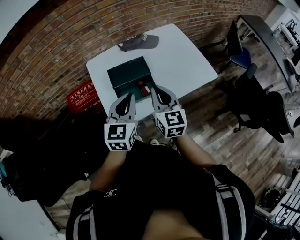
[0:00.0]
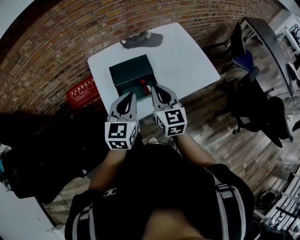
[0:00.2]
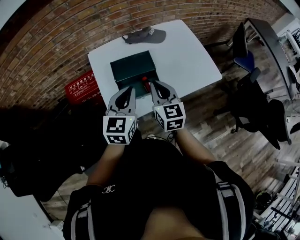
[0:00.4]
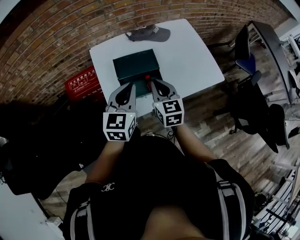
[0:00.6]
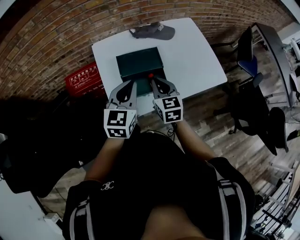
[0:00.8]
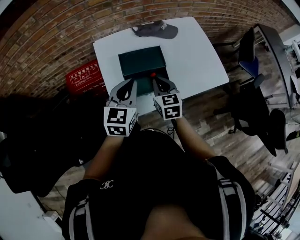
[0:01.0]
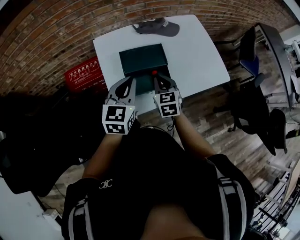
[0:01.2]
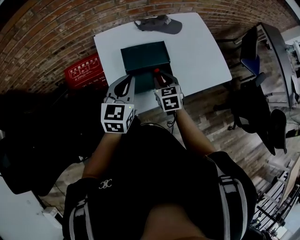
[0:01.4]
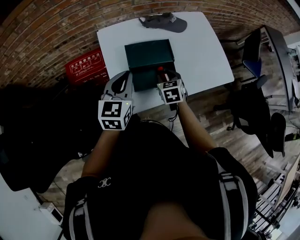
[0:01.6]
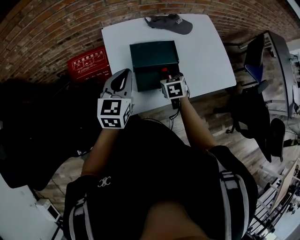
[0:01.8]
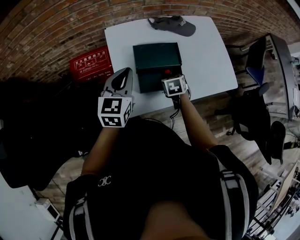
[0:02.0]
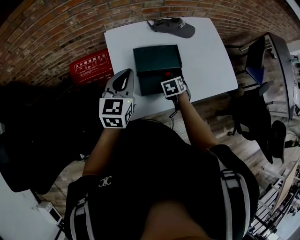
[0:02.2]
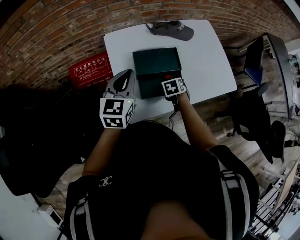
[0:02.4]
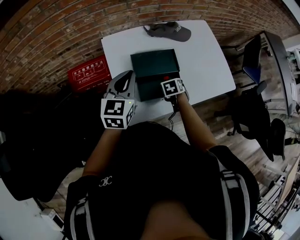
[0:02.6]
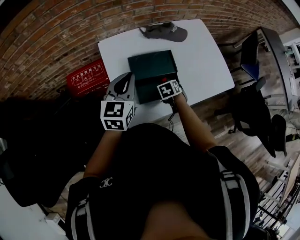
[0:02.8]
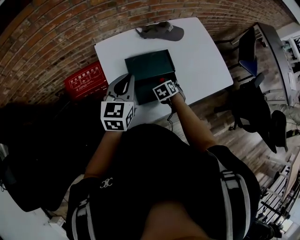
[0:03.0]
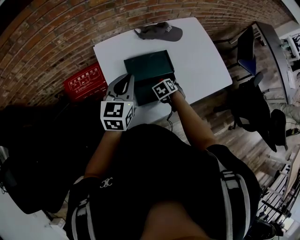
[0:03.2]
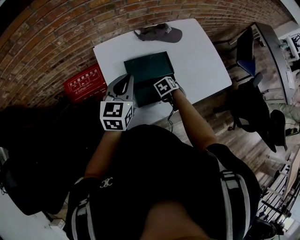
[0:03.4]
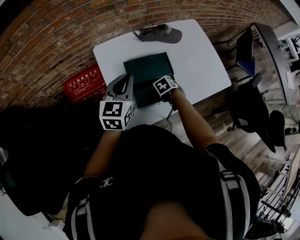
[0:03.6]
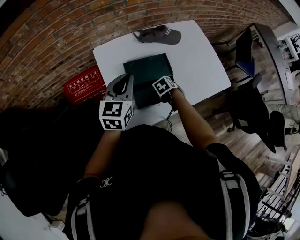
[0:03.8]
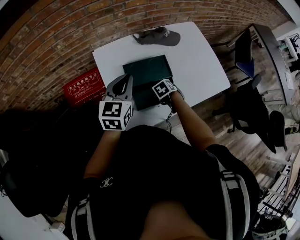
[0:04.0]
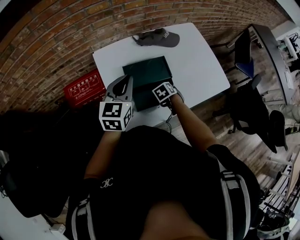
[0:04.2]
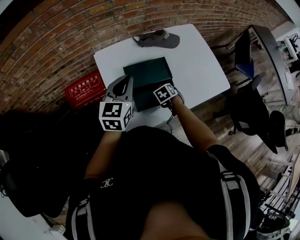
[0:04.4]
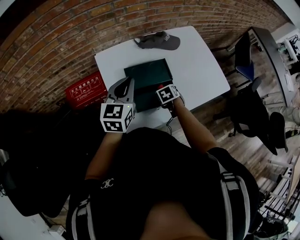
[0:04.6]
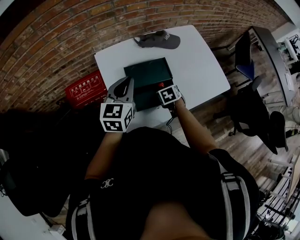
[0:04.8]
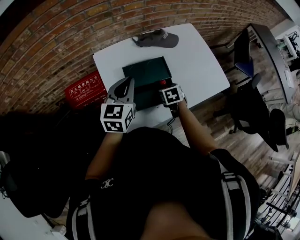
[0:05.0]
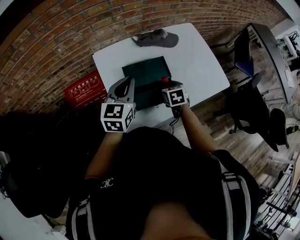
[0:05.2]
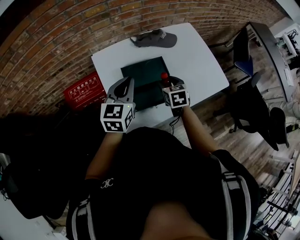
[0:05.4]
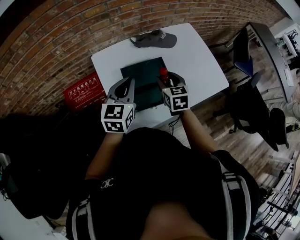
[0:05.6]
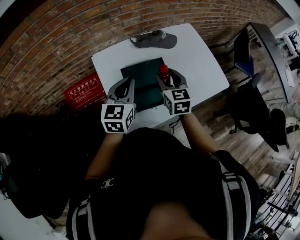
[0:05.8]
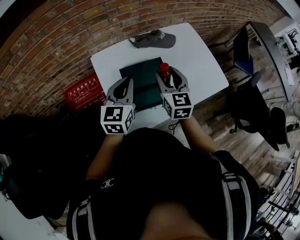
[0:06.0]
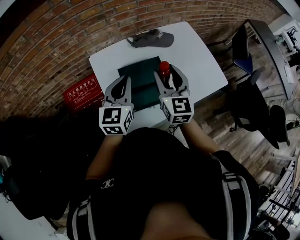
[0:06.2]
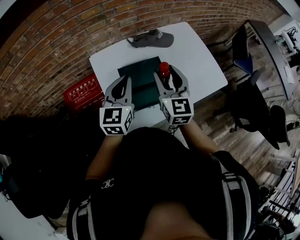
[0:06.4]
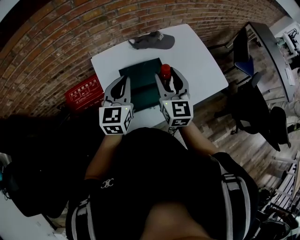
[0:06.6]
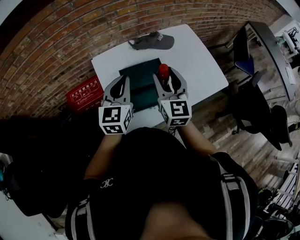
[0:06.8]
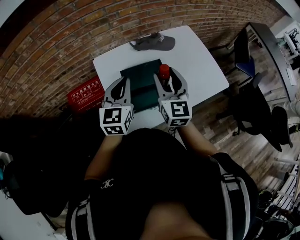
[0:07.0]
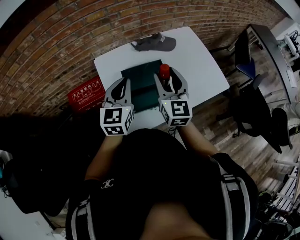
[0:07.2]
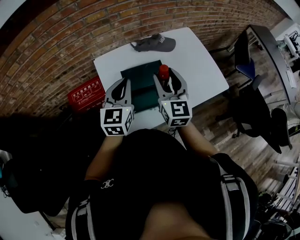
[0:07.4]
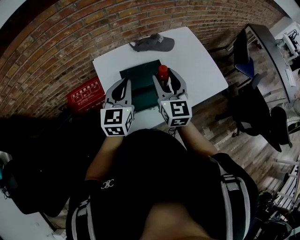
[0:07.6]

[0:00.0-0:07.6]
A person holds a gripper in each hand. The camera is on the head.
0:00.0 to 0:01.6: The left gripper heads to the left, forward and downward, covering roughly 15 cm; the right gripper heads downward and forward, covering some 20 cm, tilts its fingers approximately 40 degrees downward, and opens up.
0:01.6 to 0:03.0: The left gripper shifts approximately 5 cm forward. Meanwhile the right gripper shifts approximately 10 cm downward, and rotates about 30 degrees.
0:03.0 to 0:04.6: There are only small adjustments of the grippers.
0:04.6 to 0:06.0: The right gripper heads upward, covering about 25 cm, and tips its fingers upward by approximately 50 degrees.
0:06.0 to 0:07.6: The right gripper shifts by approximately 5 cm.

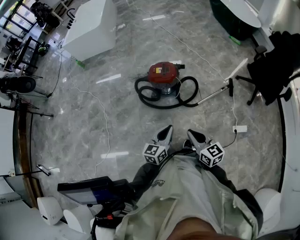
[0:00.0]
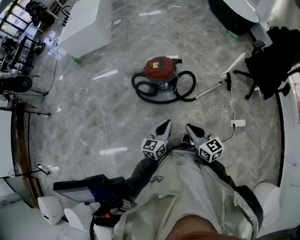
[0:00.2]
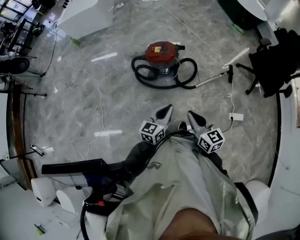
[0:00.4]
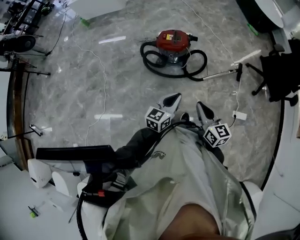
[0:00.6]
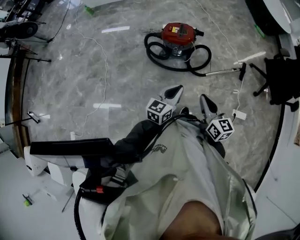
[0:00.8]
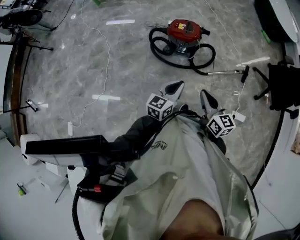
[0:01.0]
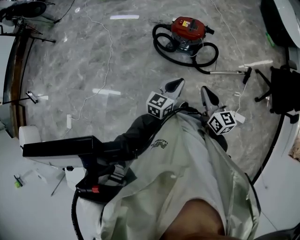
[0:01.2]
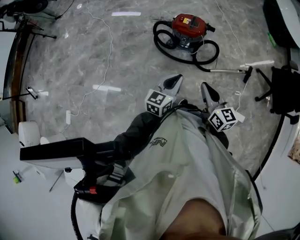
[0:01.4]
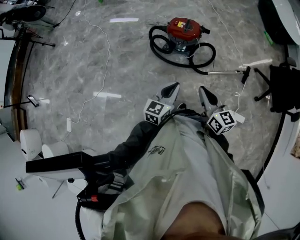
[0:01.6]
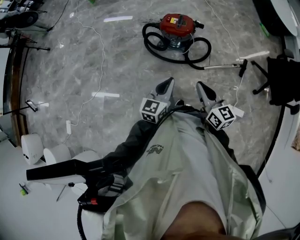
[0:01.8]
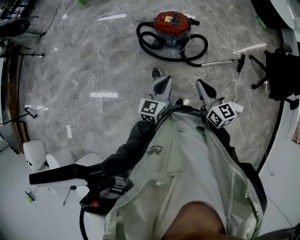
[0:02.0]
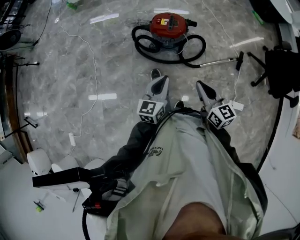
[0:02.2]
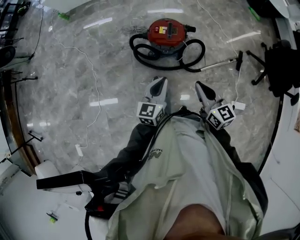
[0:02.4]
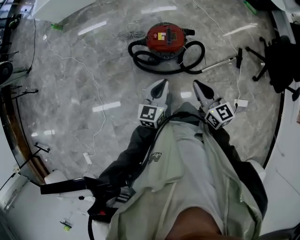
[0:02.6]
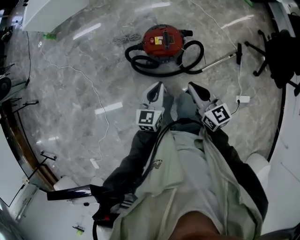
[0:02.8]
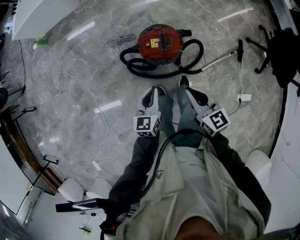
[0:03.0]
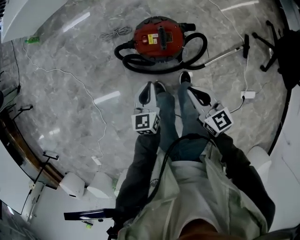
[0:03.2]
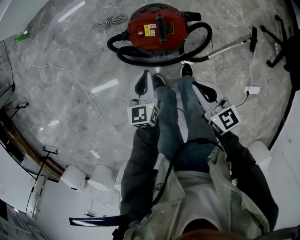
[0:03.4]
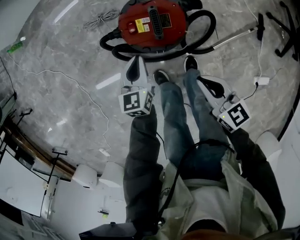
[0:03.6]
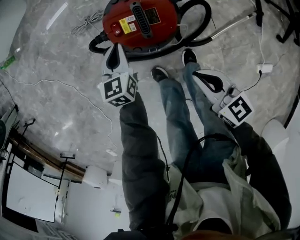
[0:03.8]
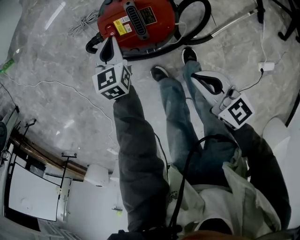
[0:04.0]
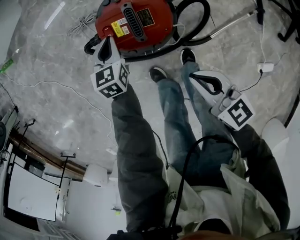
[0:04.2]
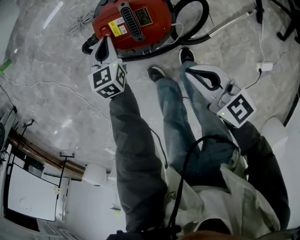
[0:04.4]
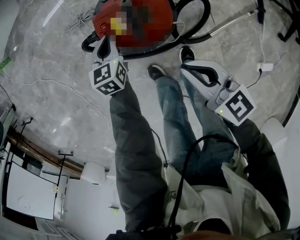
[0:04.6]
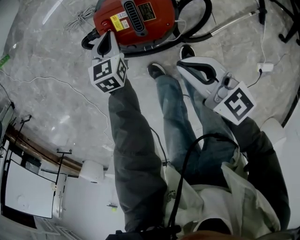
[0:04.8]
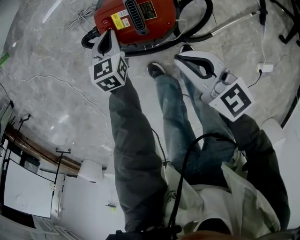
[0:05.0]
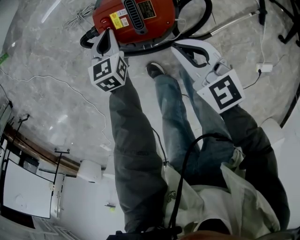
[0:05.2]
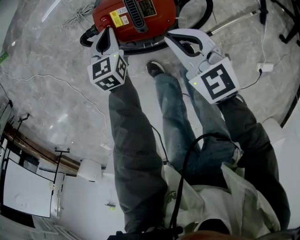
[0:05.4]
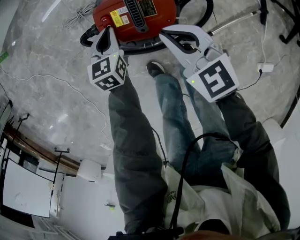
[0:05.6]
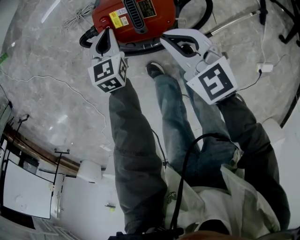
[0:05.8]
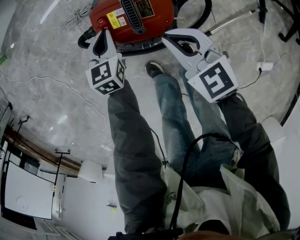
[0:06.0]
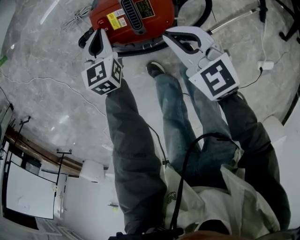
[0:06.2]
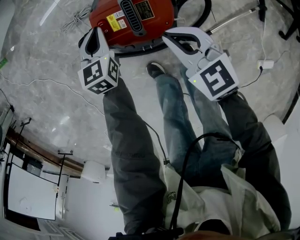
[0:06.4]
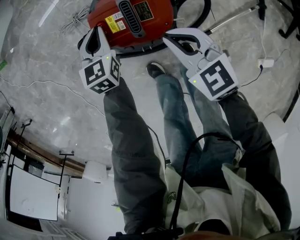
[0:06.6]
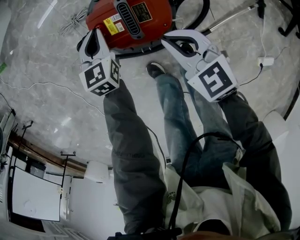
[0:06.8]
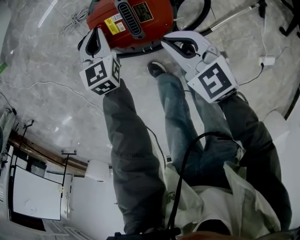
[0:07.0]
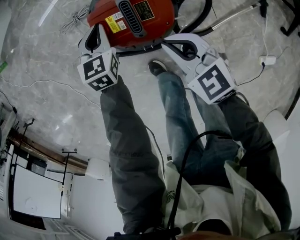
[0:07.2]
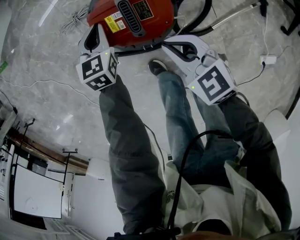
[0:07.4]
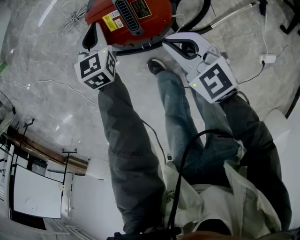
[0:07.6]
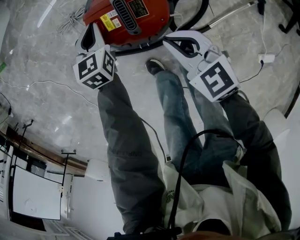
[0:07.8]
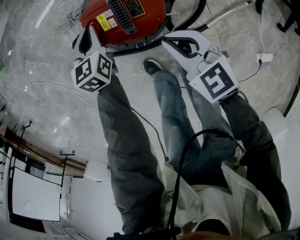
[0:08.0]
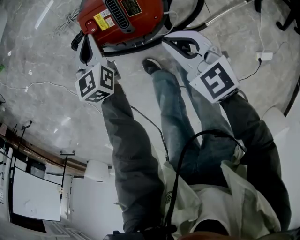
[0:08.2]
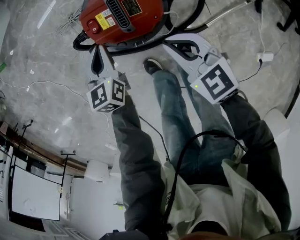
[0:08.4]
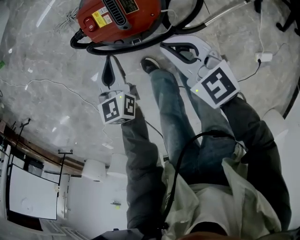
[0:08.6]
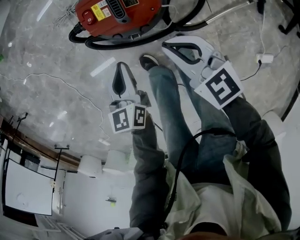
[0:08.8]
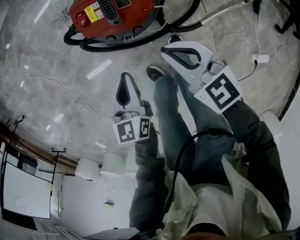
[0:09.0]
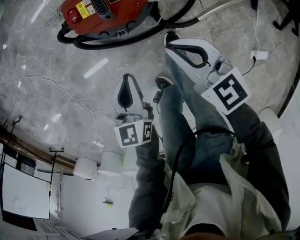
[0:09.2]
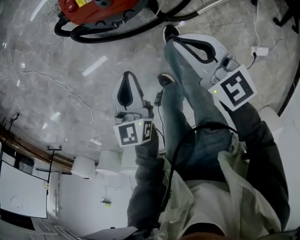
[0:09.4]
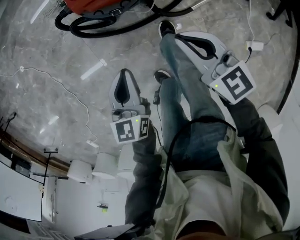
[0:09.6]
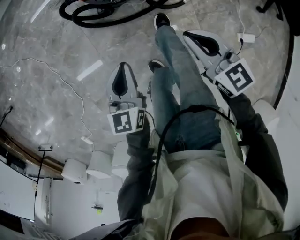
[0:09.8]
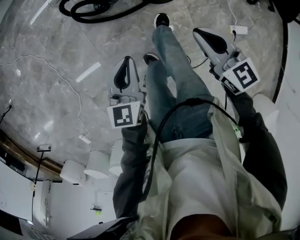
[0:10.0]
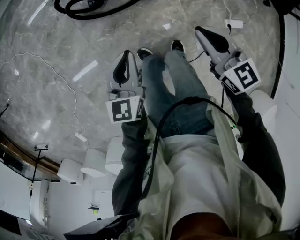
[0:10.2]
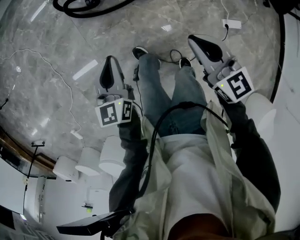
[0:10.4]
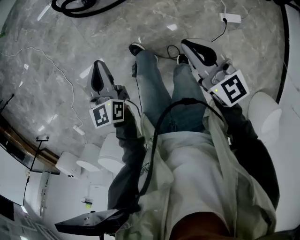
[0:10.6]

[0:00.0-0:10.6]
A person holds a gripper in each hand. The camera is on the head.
0:00.0 to 0:01.6: The right gripper ends up about 5 cm from where it was.
0:01.6 to 0:03.0: The grippers both shift forward by some 35 cm.
0:03.0 to 0:04.6: The right gripper travels downward by approximately 25 cm; the left gripper goes about 40 cm downward and forward, and changes its angle by approximately 20 degrees.
0:04.6 to 0:06.0: The right gripper shifts approximately 5 cm forward, and turns by about 20 degrees.
0:06.0 to 0:07.6: The grippers make only small movements.
0:07.6 to 0:09.0: The right gripper heads backward, covering about 5 cm. Meanwhile the left gripper shifts some 25 cm backward, and turns by some 30 degrees.
0:09.0 to 0:10.6: The grippers both shift backward and upward by some 50 cm.

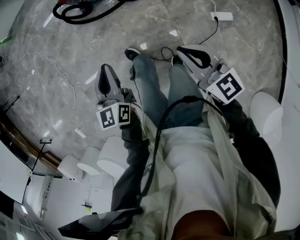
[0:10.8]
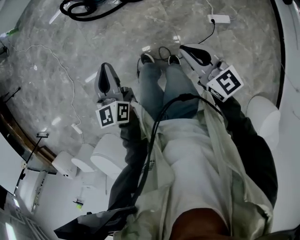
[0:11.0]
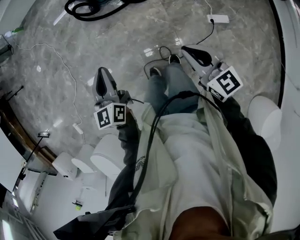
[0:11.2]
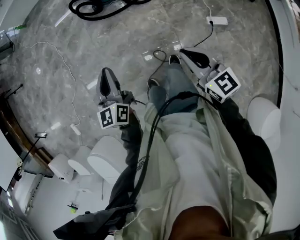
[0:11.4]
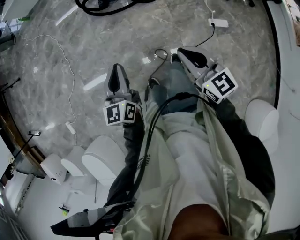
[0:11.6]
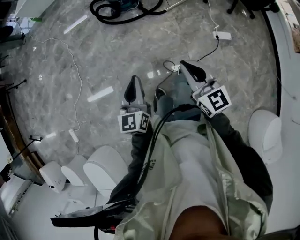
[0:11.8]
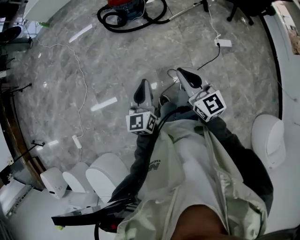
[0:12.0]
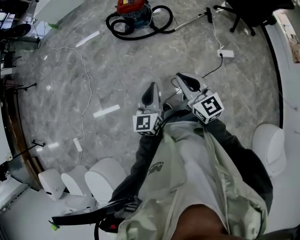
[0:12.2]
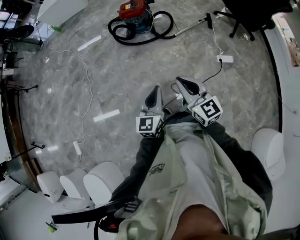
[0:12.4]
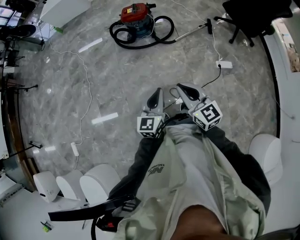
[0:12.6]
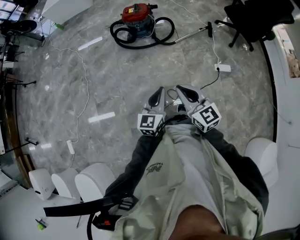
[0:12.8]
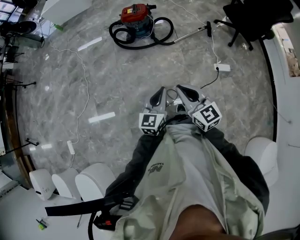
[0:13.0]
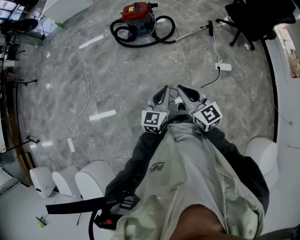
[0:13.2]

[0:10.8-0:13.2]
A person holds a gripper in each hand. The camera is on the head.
0:10.8 to 0:12.0: The left gripper shifts some 30 cm backward, upward and to the left. The right gripper moves to the left, backward and upward, approximately 30 cm.
0:12.0 to 0:13.2: The left gripper travels to the right by about 10 cm.

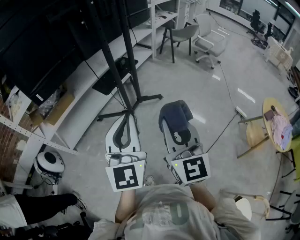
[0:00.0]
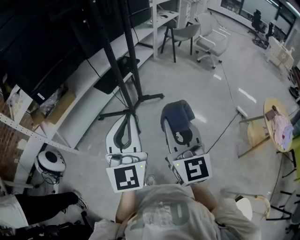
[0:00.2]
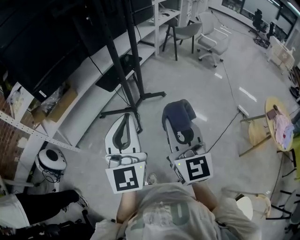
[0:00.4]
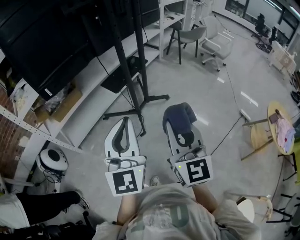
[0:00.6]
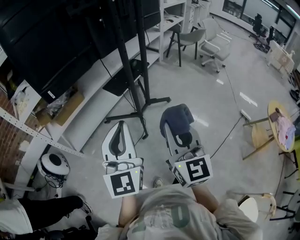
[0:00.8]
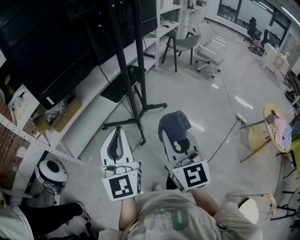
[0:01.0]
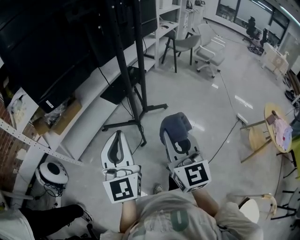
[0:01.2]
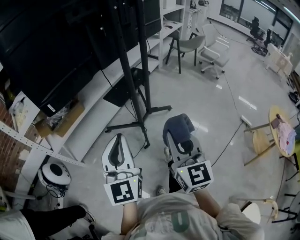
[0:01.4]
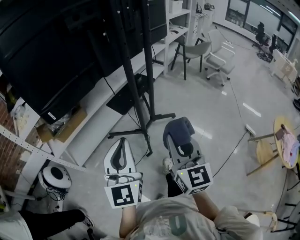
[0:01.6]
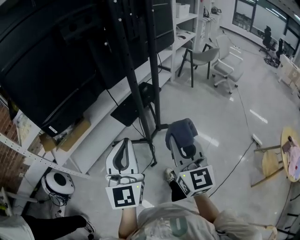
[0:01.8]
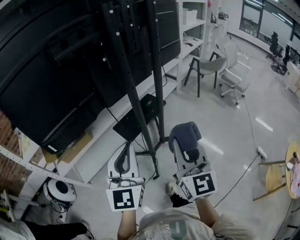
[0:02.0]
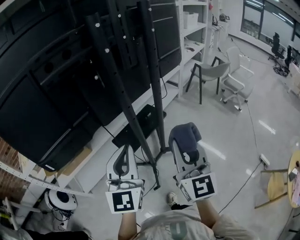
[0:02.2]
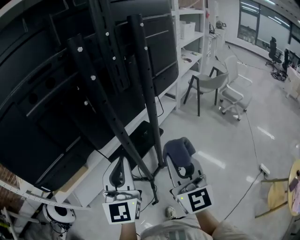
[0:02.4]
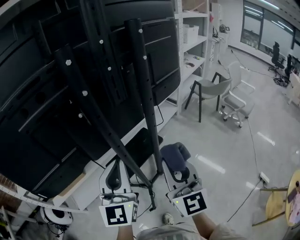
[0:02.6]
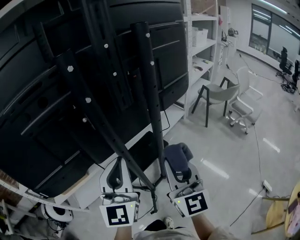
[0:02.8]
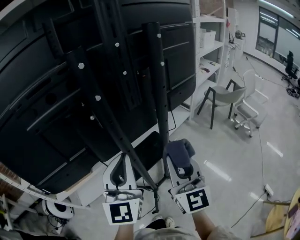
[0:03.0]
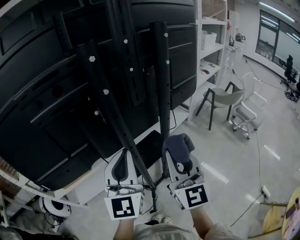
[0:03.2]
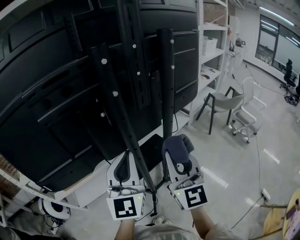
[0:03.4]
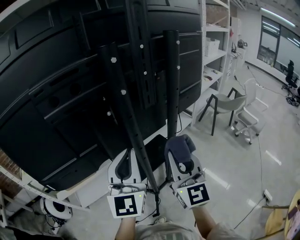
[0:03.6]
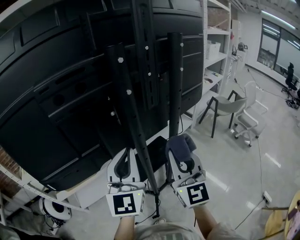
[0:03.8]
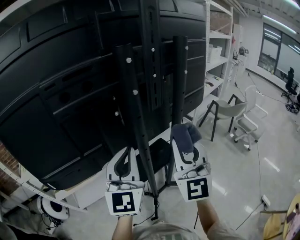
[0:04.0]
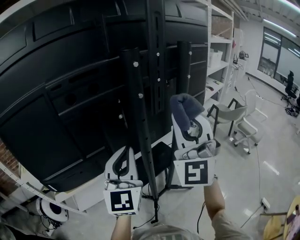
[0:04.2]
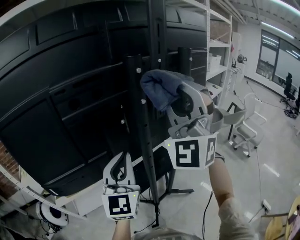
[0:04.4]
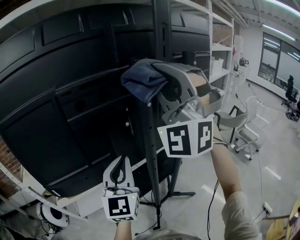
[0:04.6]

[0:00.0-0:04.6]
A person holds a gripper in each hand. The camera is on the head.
0:00.0 to 0:01.6: The right gripper heads forward and to the left, covering roughly 15 cm, while the left gripper shifts approximately 15 cm to the left and forward.
0:01.6 to 0:03.0: The pair of grippers is taken forward, approximately 40 cm.
0:03.0 to 0:04.6: The left gripper goes about 10 cm to the left; the right gripper shifts some 30 cm upward and to the left, and rolls counterclockwise, seen from behind, by approximately 70 degrees.
